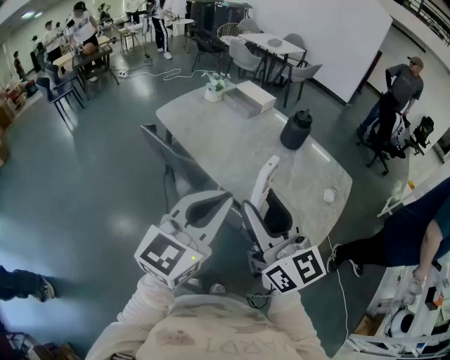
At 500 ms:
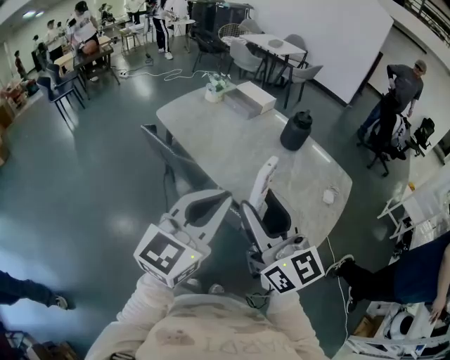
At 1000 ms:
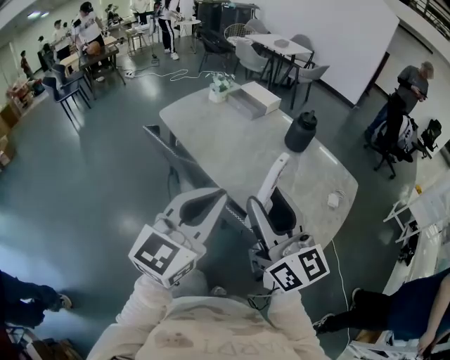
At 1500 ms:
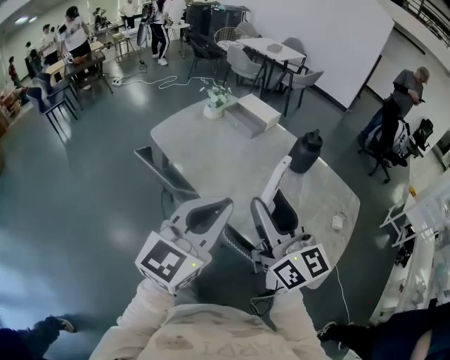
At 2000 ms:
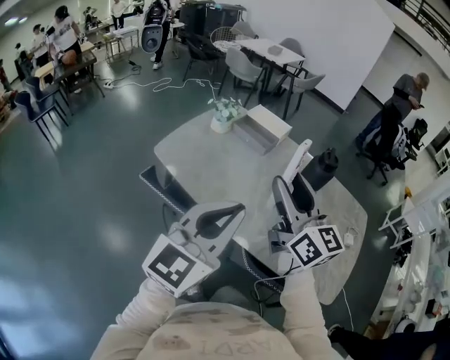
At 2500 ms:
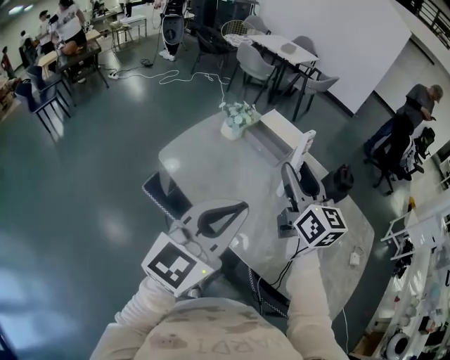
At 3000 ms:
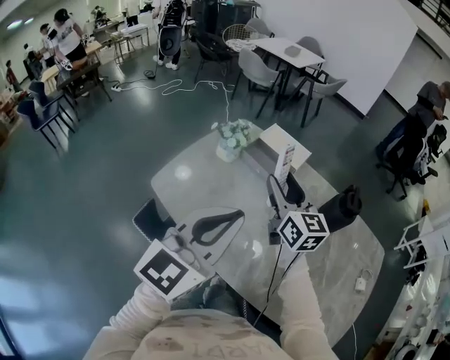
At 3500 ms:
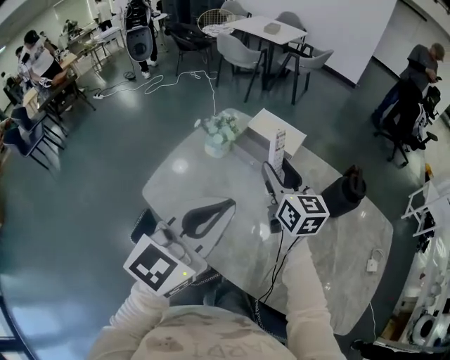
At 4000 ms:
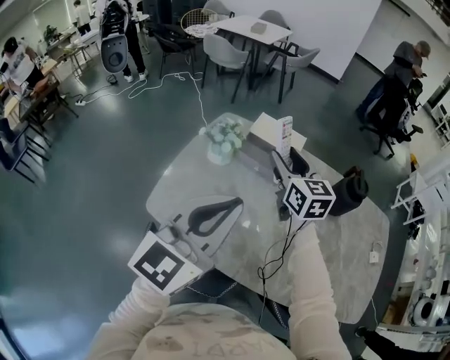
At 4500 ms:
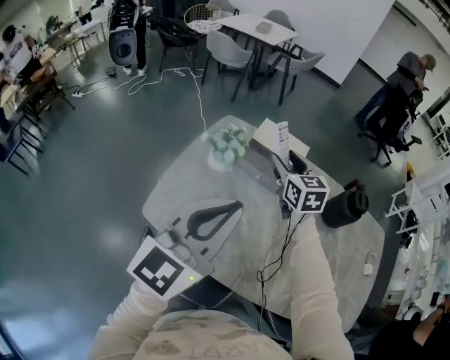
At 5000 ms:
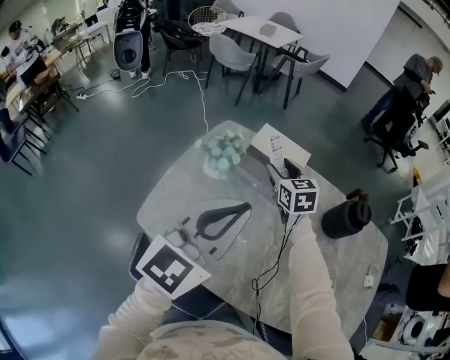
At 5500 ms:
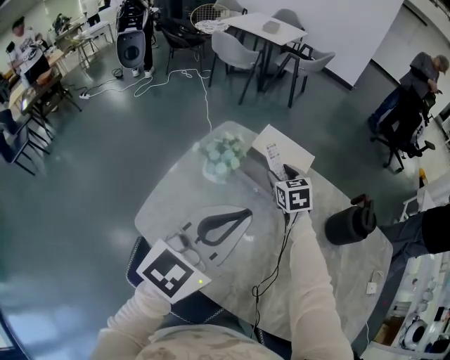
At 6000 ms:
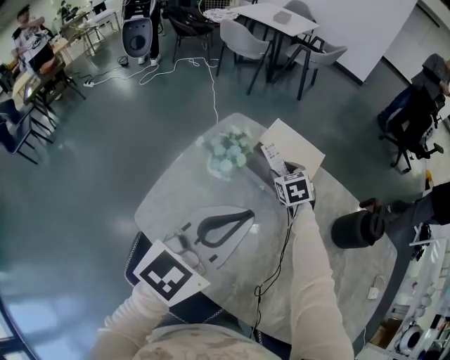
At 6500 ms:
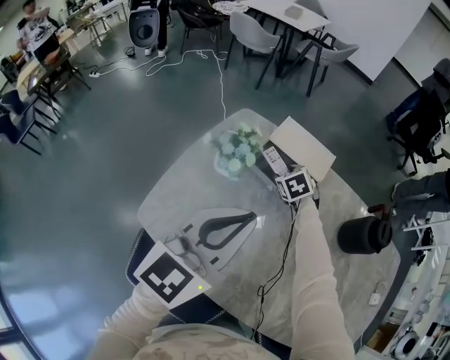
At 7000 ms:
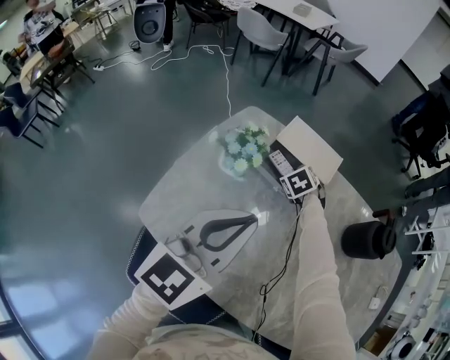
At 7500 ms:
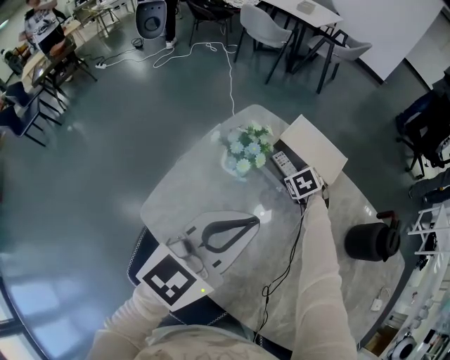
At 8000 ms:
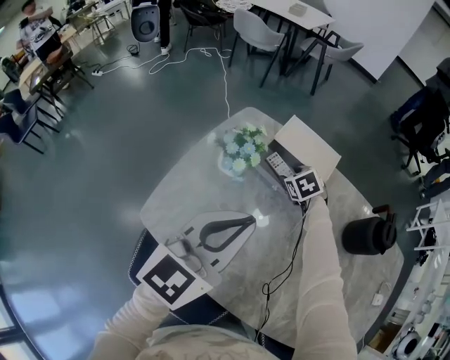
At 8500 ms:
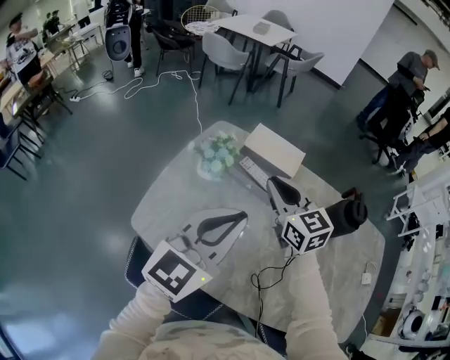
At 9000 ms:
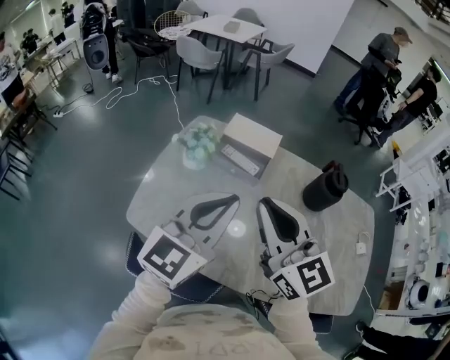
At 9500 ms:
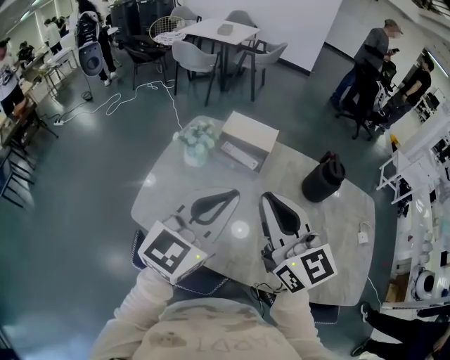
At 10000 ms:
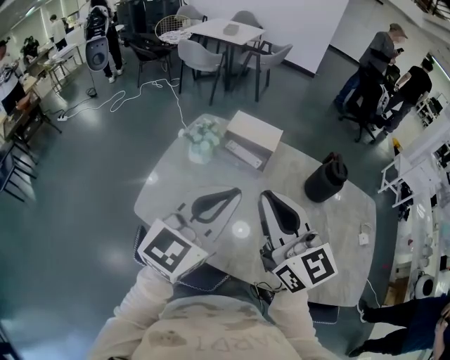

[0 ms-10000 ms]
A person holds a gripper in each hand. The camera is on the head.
0 ms to 2000 ms: The left gripper shifts some 30 cm forward and to the left; the right gripper moves forward, approximately 35 cm.
2000 ms to 4000 ms: The right gripper is displaced forward by roughly 40 cm, and turns by roughly 30 degrees. Meanwhile the left gripper travels forward and to the left by about 35 cm.
4000 ms to 6000 ms: The left gripper moves forward and downward, approximately 15 cm, while the right gripper goes approximately 30 cm downward and forward, and tips its fingers downward by roughly 40 degrees.
6000 ms to 8000 ms: The right gripper shifts some 5 cm downward.
8000 ms to 10000 ms: The right gripper moves upward and backward, some 50 cm, tips its fingers upward by about 60 degrees, and closes. The left gripper shifts some 15 cm backward and upward.

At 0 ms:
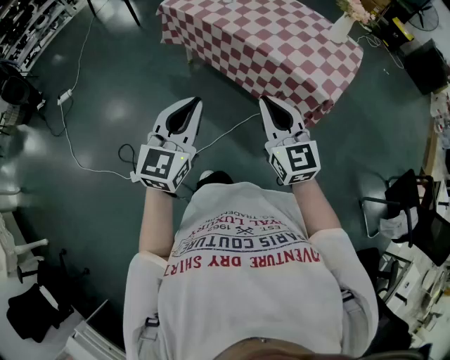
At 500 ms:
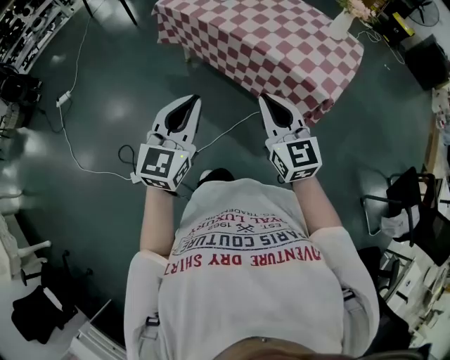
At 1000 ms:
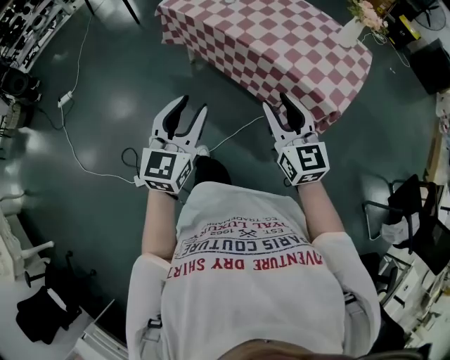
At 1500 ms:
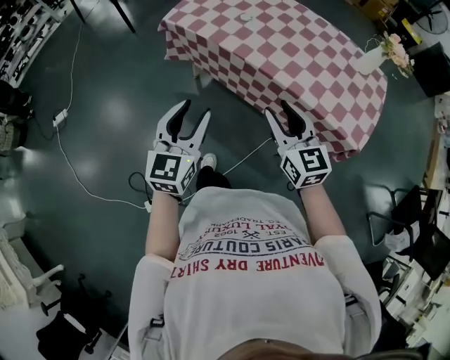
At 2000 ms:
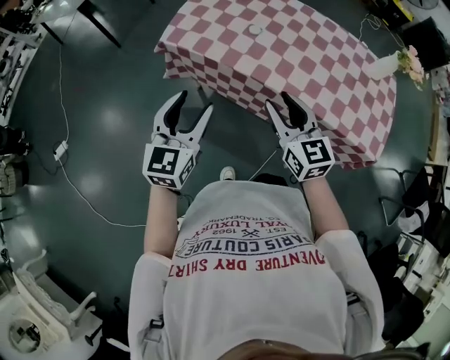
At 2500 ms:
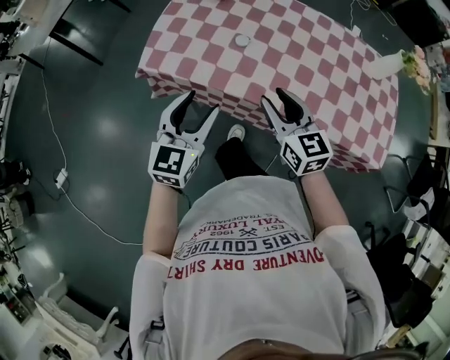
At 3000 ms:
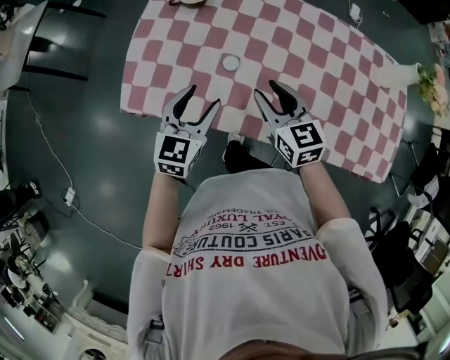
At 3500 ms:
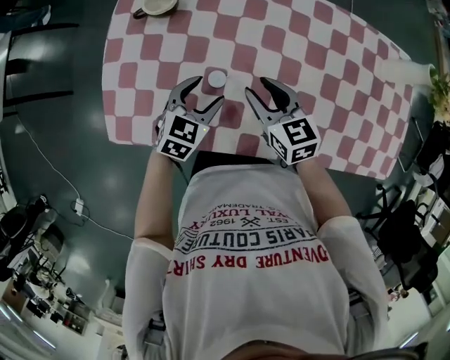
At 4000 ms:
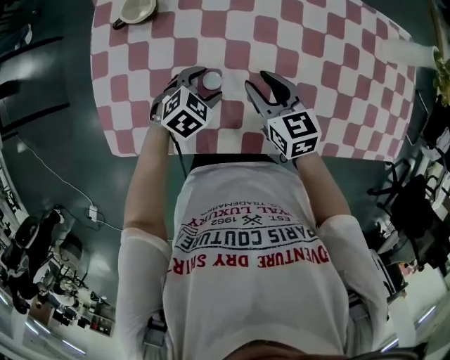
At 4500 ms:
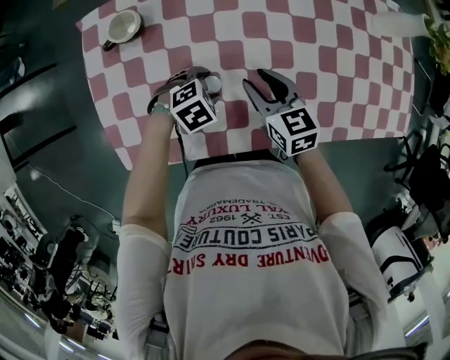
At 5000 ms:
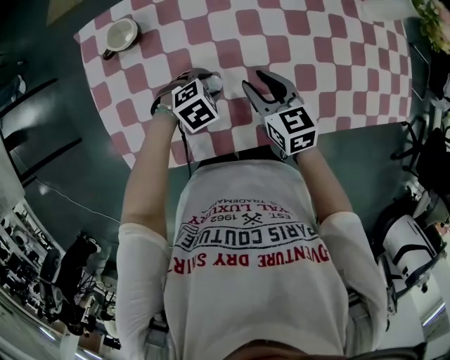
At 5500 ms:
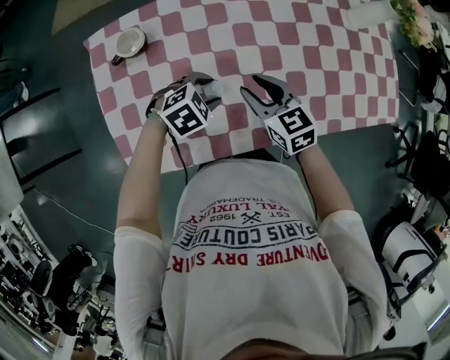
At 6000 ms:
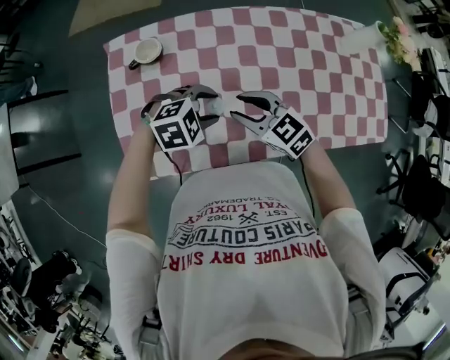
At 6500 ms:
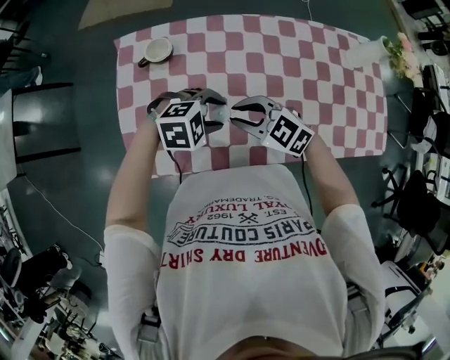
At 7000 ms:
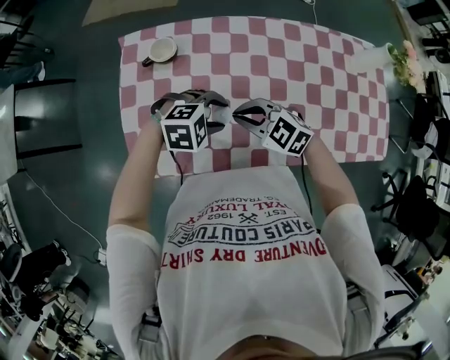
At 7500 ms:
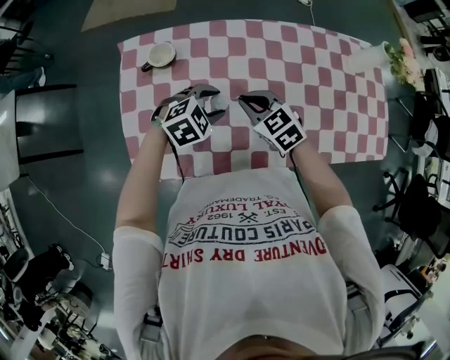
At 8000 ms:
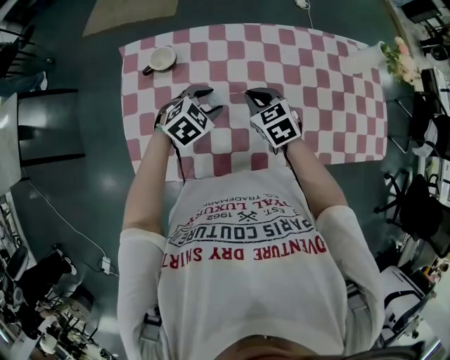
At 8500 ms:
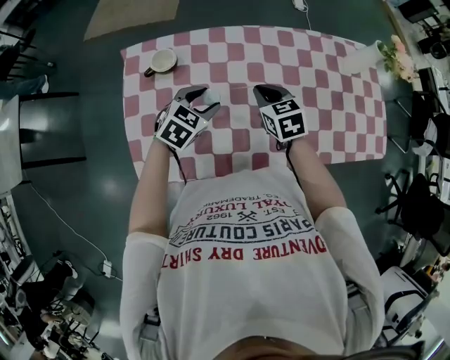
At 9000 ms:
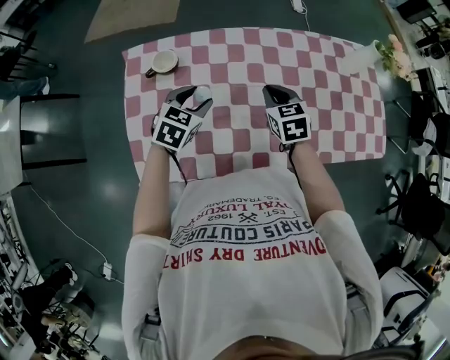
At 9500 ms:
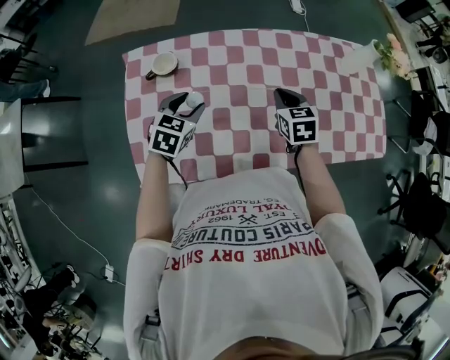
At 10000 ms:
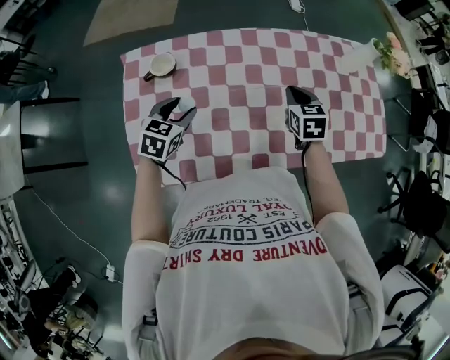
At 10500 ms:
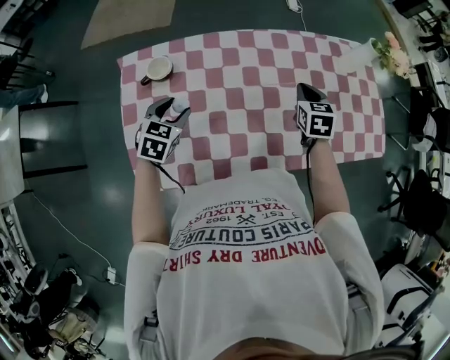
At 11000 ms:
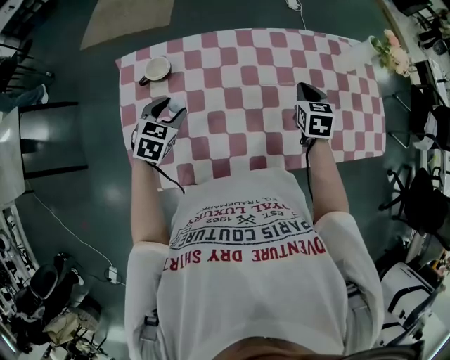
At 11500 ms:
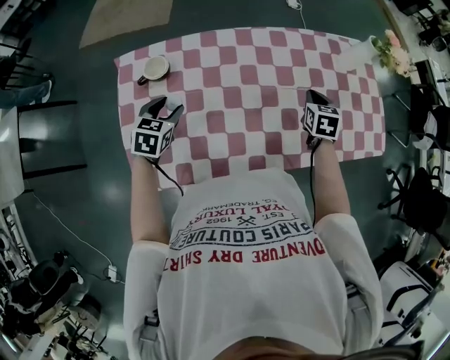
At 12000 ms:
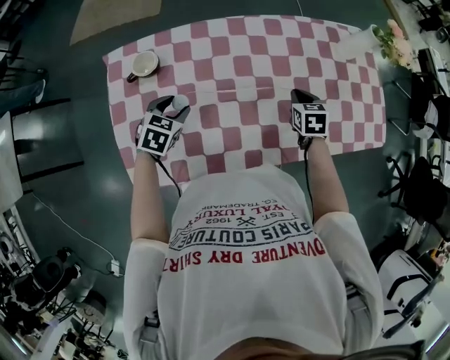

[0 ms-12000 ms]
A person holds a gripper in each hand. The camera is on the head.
0 ms to 2000 ms: Both grippers are carried forward and to the left, about 50 cm. The left gripper opens its fingers. The right gripper opens its fingers.
2000 ms to 4000 ms: The right gripper changes place by roughly 40 cm, and changes its angle by some 30 degrees. The left gripper ends up about 50 cm from where it was, and angles its fingers downward, by roughly 50 degrees.
4000 ms to 6000 ms: The right gripper shifts about 10 cm upward, and changes its angle by some 20 degrees. Meanwhile the left gripper shifts some 15 cm upward, and changes its angle by roughly 40 degrees.
6000 ms to 8000 ms: The right gripper shifts by approximately 10 cm, swivels approximately 20 degrees, and closes up, while the left gripper shifts by roughly 5 cm, and swivels roughly 30 degrees.
8000 ms to 10000 ms: The left gripper shifts some 10 cm to the left, and changes its angle by approximately 30 degrees, while the right gripper moves to the right, some 15 cm, and turns by roughly 30 degrees.
10000 ms to 12000 ms: The left gripper goes approximately 5 cm downward; the right gripper goes about 10 cm downward and to the right.

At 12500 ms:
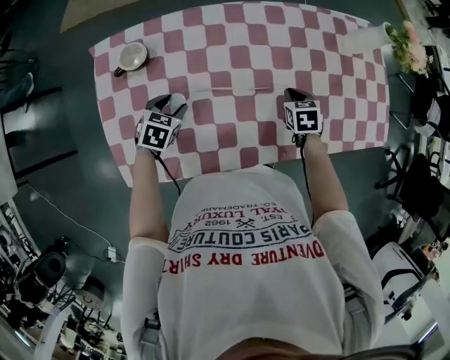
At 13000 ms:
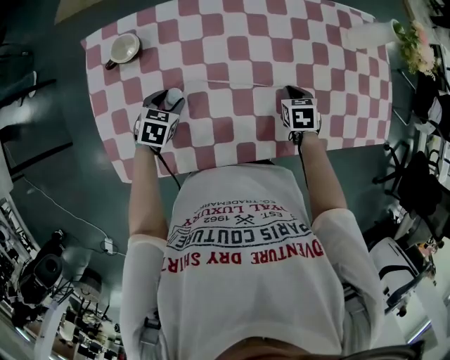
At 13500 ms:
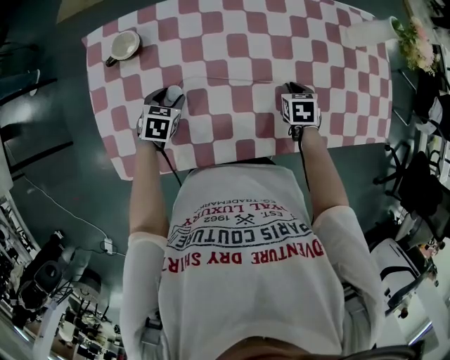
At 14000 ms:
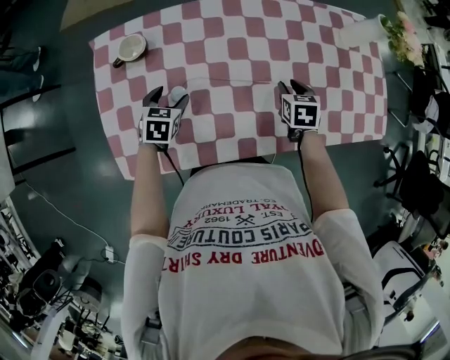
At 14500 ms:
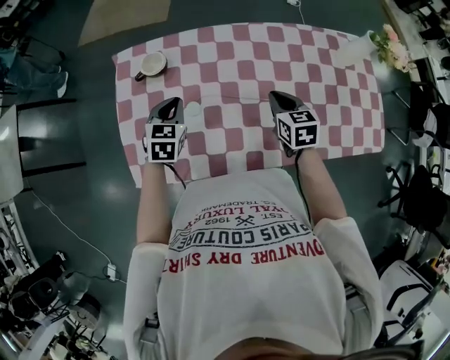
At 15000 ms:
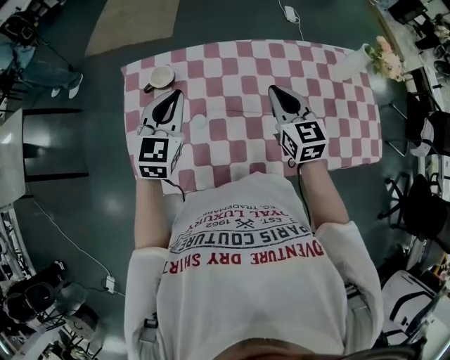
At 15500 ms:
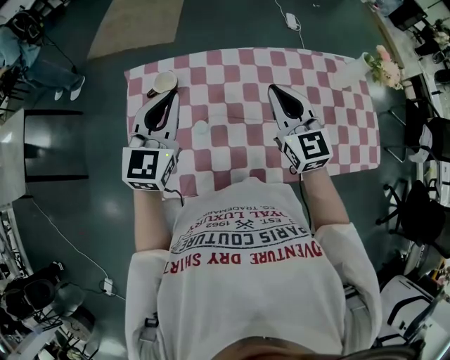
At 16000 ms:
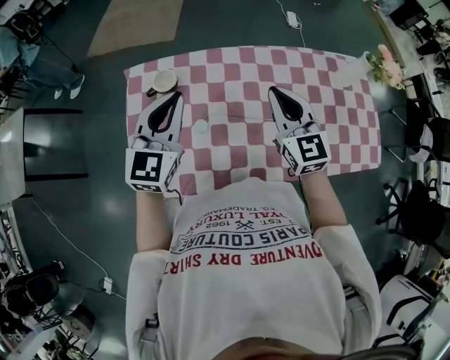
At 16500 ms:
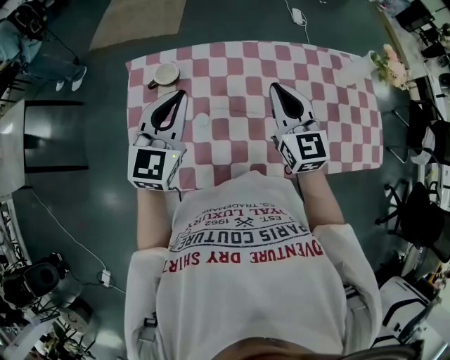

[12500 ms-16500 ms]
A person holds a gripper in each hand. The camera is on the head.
12500 ms to 14500 ms: The right gripper heads upward and to the left, covering about 15 cm, swivels about 20 degrees, and opens, then closes again, while the left gripper travels upward by about 10 cm, changes its angle by some 30 degrees, and closes up.
14500 ms to 16500 ms: The two grippers go about 20 cm upward. The right gripper points its fingers approximately 30 degrees further upward. Meanwhile the left gripper angles its fingers upward, by some 30 degrees.
